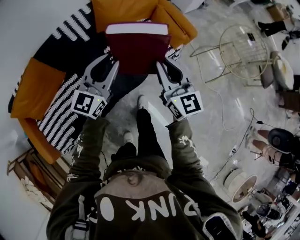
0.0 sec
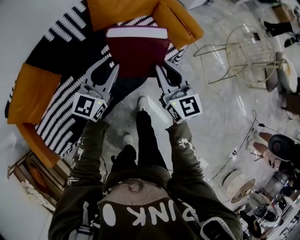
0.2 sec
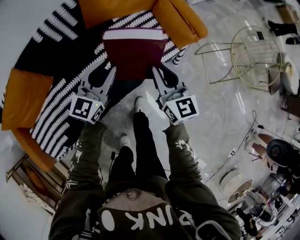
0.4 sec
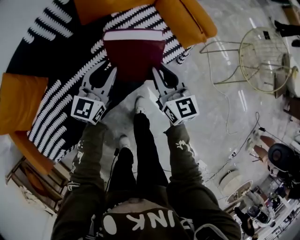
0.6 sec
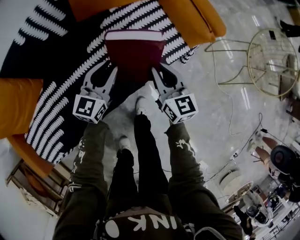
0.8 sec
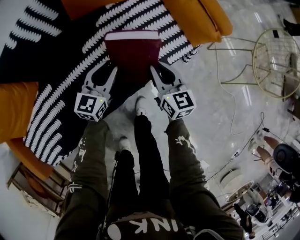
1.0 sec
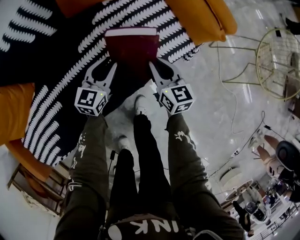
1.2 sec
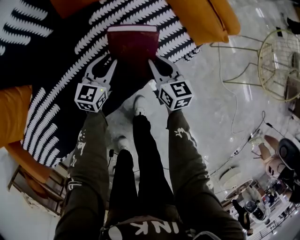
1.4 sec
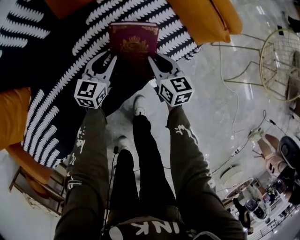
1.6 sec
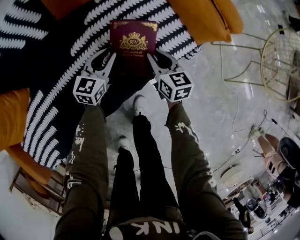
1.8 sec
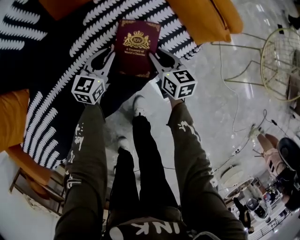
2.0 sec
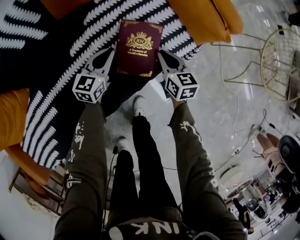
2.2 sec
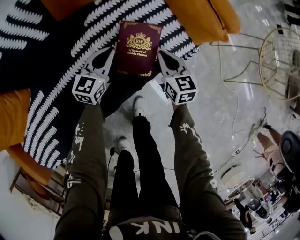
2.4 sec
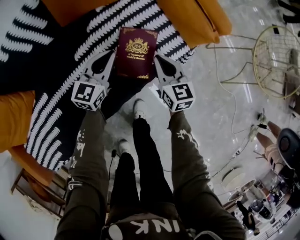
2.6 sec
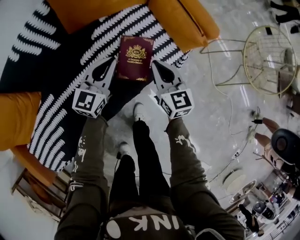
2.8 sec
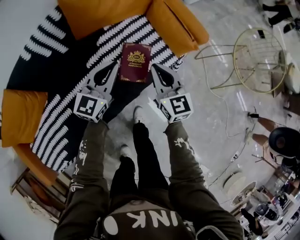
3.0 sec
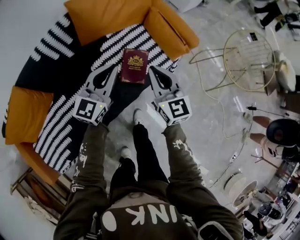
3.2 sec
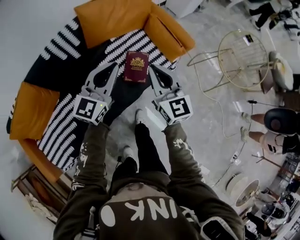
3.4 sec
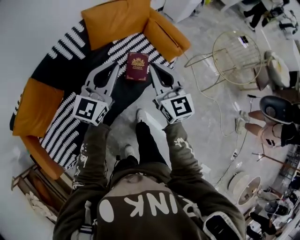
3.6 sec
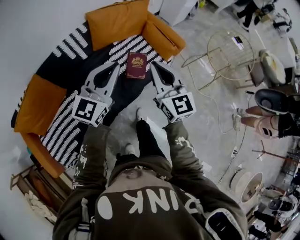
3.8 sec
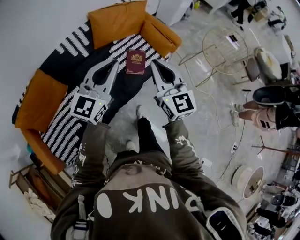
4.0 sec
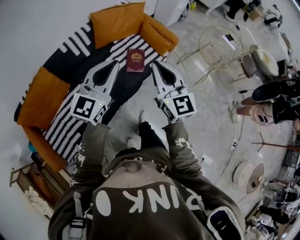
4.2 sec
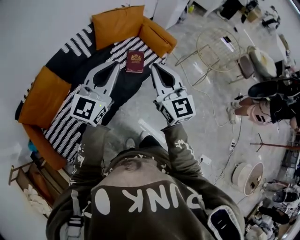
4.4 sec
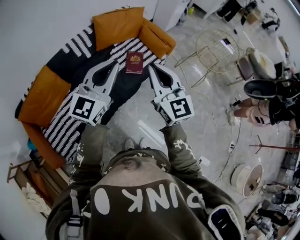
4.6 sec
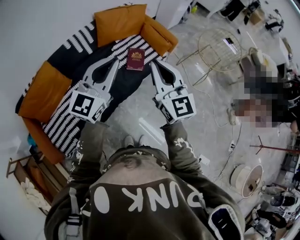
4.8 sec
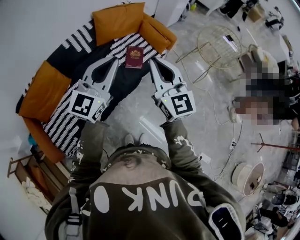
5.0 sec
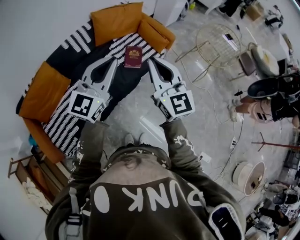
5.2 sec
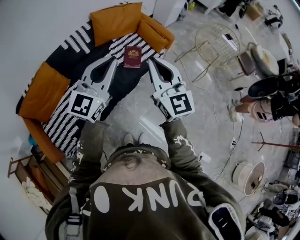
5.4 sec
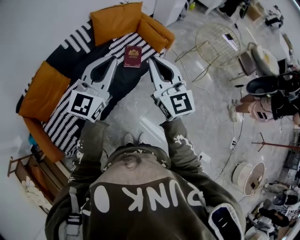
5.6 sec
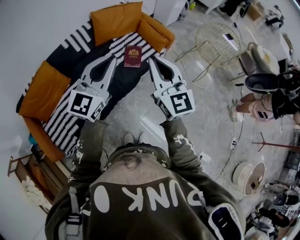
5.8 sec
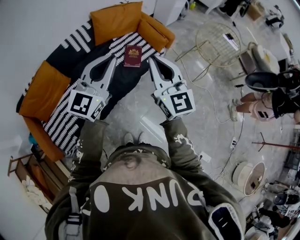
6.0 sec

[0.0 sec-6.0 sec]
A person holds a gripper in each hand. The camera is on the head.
0.0 sec to 1.6 sec: Both grippers move downward and forward, about 50 cm. The right gripper swivels roughly 30 degrees; the left gripper changes its angle by roughly 30 degrees.
1.6 sec to 3.0 sec: The grippers both shift upward by roughly 25 cm. The right gripper turns by roughly 20 degrees; the left gripper closes up.
3.0 sec to 4.4 sec: The two grippers go approximately 50 cm upward and backward. The right gripper swivels some 20 degrees.
4.4 sec to 6.0 sec: The left gripper changes place by approximately 5 cm; the right gripper changes place by approximately 5 cm.

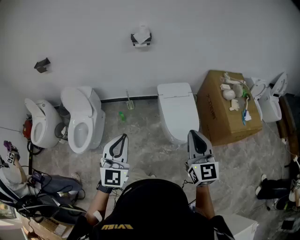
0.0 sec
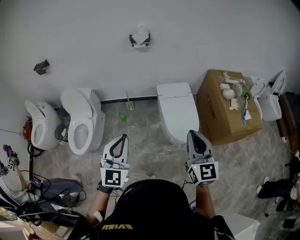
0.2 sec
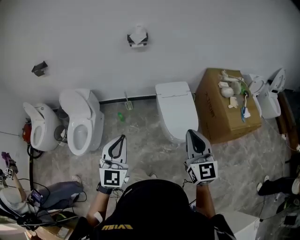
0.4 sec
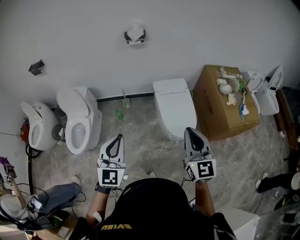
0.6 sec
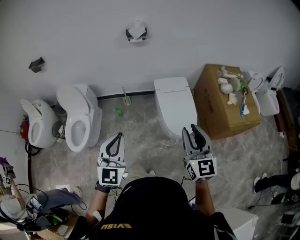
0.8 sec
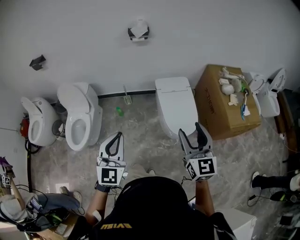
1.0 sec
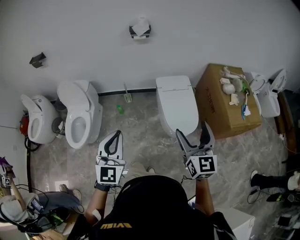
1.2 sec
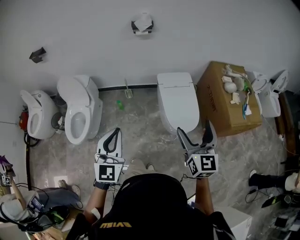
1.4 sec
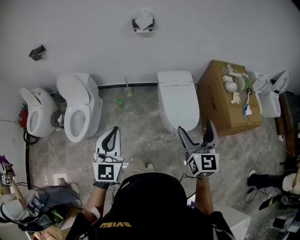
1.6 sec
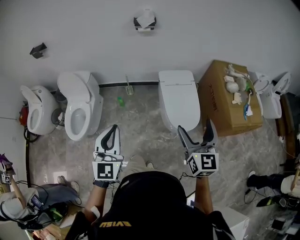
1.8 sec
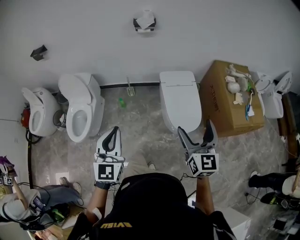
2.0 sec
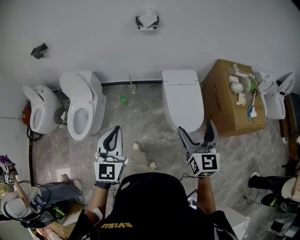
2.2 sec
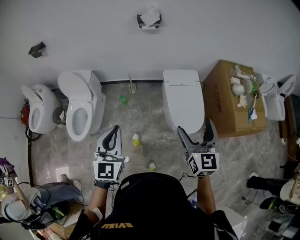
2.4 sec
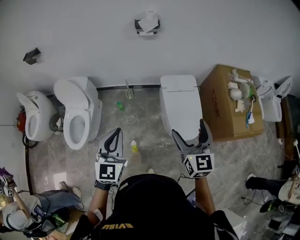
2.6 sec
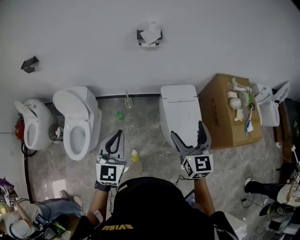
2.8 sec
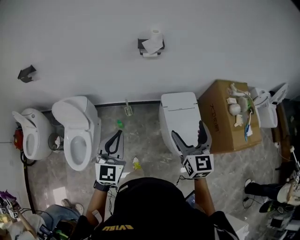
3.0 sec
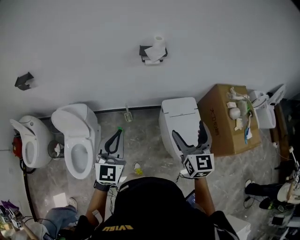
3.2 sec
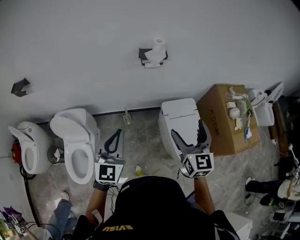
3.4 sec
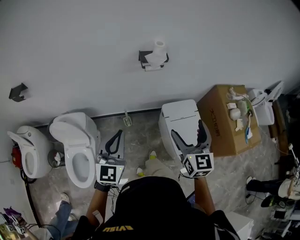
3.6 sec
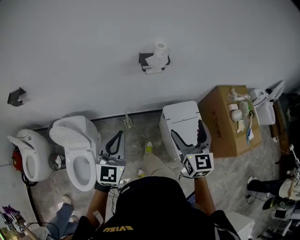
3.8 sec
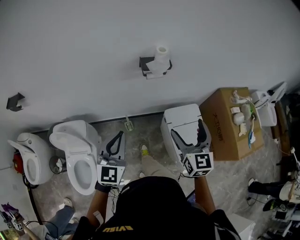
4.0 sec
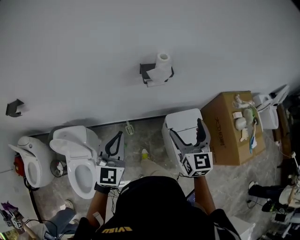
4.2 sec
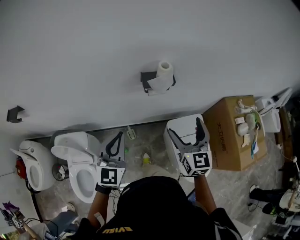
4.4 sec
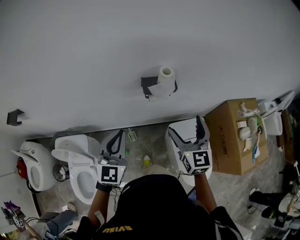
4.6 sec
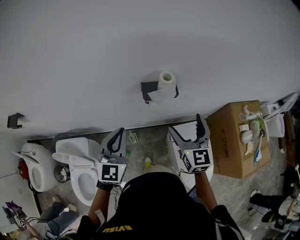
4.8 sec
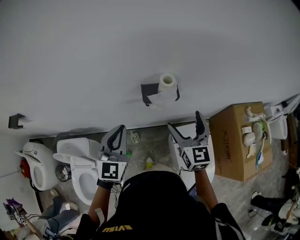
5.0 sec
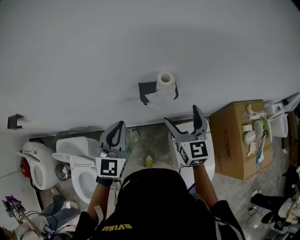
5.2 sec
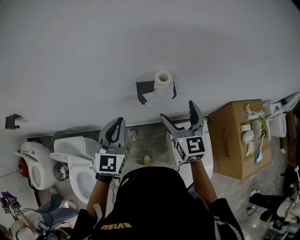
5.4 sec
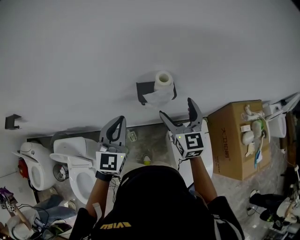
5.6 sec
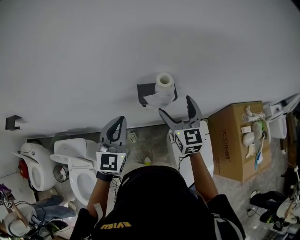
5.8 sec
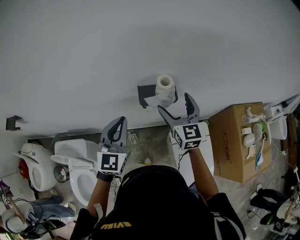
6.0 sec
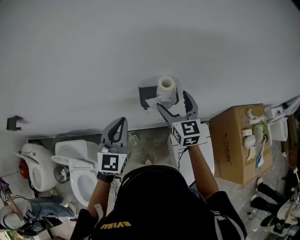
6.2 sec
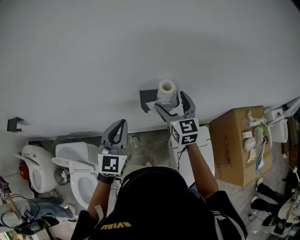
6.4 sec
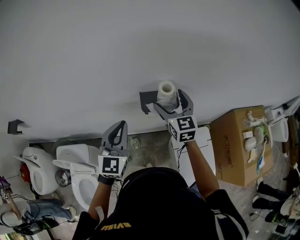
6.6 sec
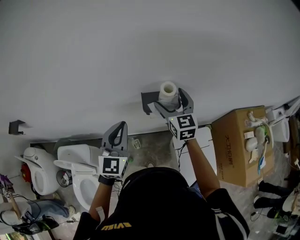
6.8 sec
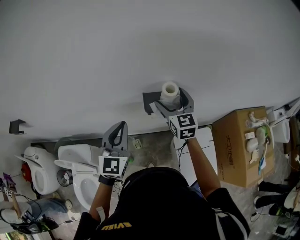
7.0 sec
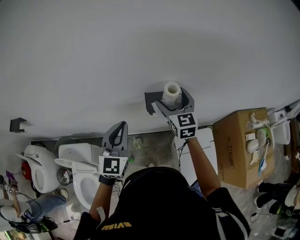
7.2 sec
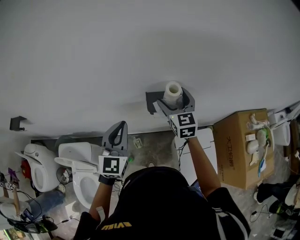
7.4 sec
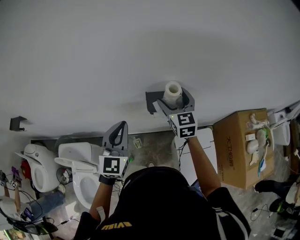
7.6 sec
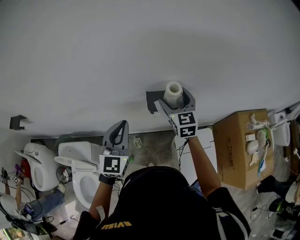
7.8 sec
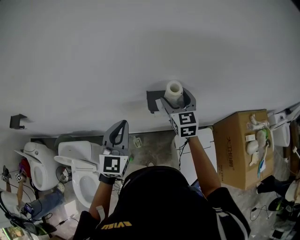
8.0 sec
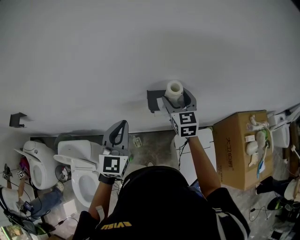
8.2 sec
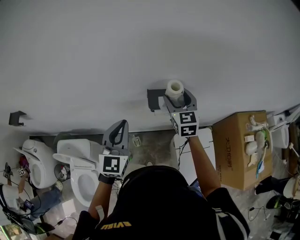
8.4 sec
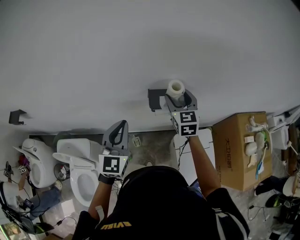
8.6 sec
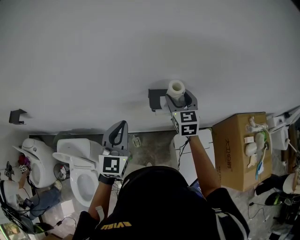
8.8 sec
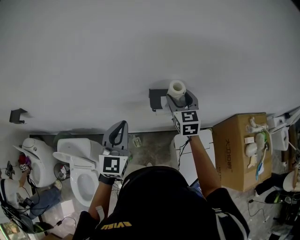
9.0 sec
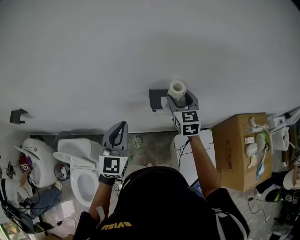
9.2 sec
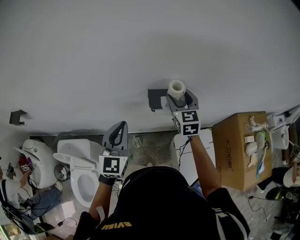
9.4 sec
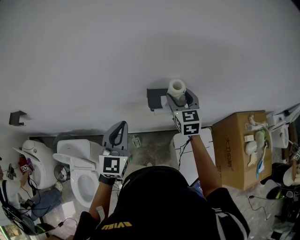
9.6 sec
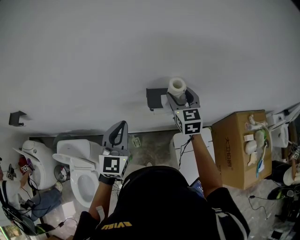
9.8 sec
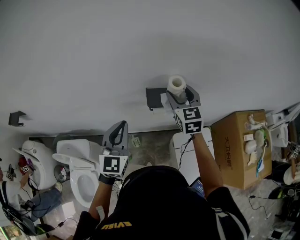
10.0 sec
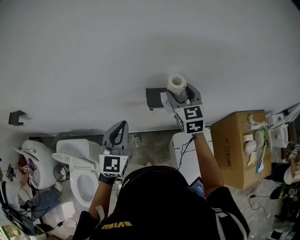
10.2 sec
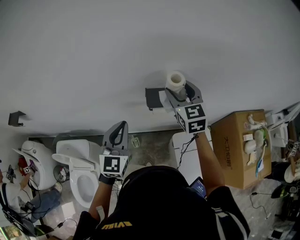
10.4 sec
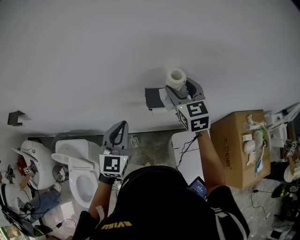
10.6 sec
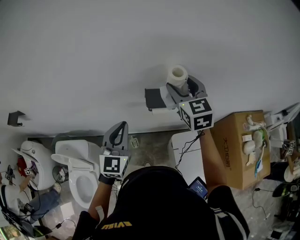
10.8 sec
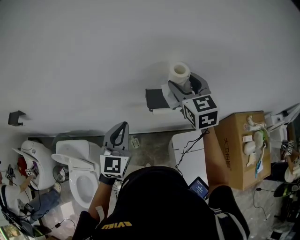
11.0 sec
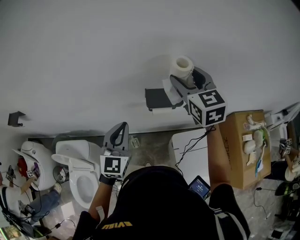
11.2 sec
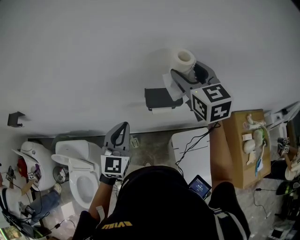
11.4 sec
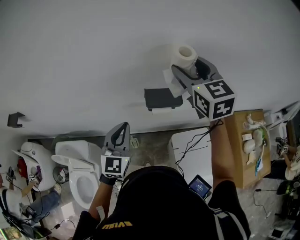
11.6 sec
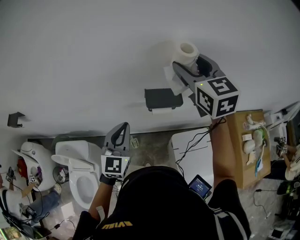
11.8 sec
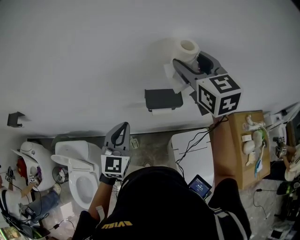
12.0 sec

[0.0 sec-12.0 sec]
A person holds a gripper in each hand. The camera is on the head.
0.0 sec to 1.6 sec: The left gripper moves to the left, approximately 5 cm, and rotates roughly 20 degrees. Meanwhile the right gripper opens.
1.6 sec to 3.0 sec: The left gripper is displaced forward by about 25 cm. The right gripper heads forward and to the left, covering some 25 cm.
3.0 sec to 4.4 sec: Both grippers move forward, roughly 30 cm.
4.4 sec to 6.0 sec: Both grippers move forward, roughly 20 cm.
6.0 sec to 7.6 sec: The right gripper is displaced forward by approximately 5 cm.
7.6 sec to 9.0 sec: The grippers move only a little.
9.0 sec to 10.4 sec: The right gripper is displaced upward by approximately 5 cm.
10.4 sec to 12.0 sec: The right gripper moves upward, about 15 cm.

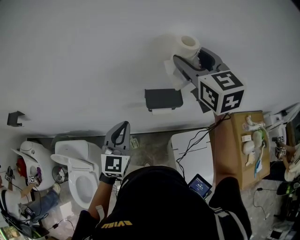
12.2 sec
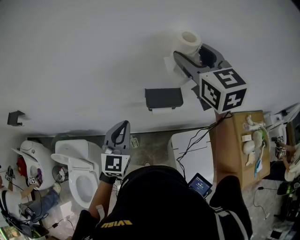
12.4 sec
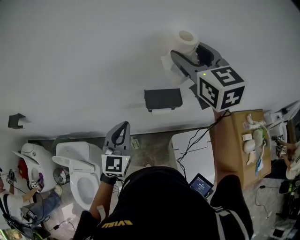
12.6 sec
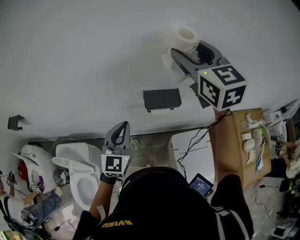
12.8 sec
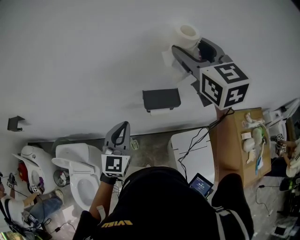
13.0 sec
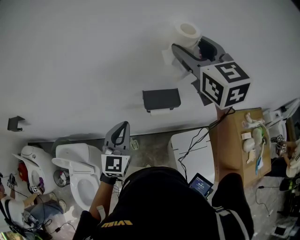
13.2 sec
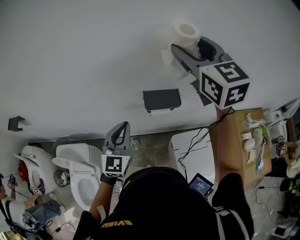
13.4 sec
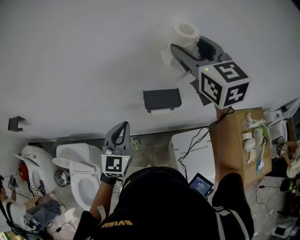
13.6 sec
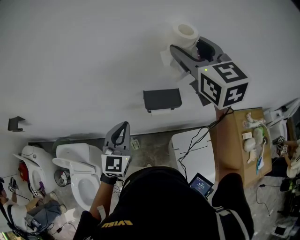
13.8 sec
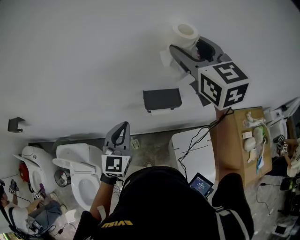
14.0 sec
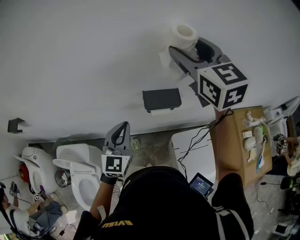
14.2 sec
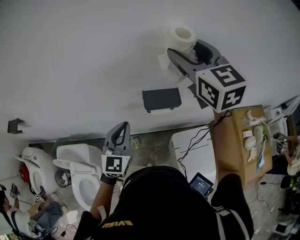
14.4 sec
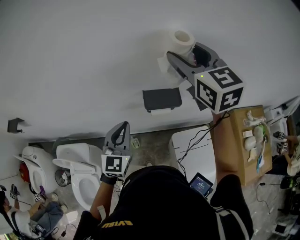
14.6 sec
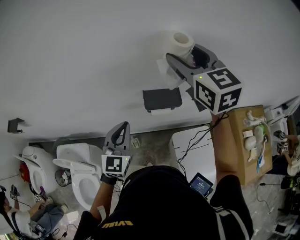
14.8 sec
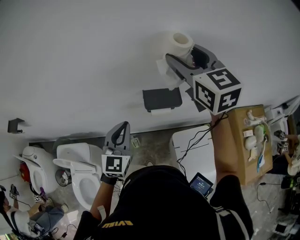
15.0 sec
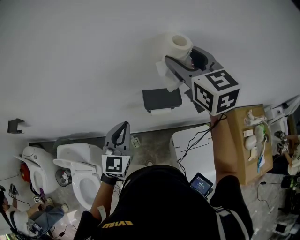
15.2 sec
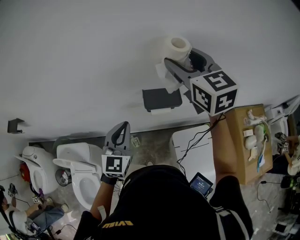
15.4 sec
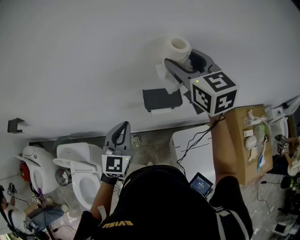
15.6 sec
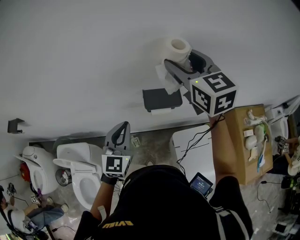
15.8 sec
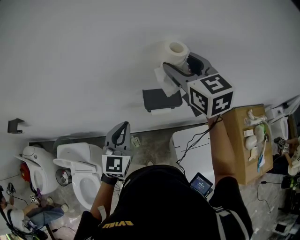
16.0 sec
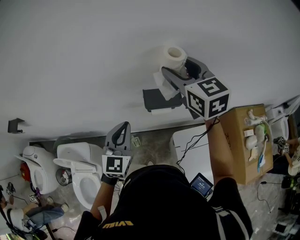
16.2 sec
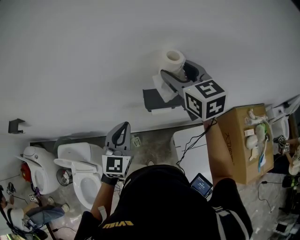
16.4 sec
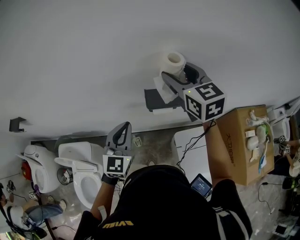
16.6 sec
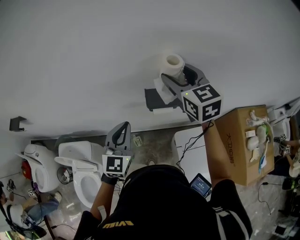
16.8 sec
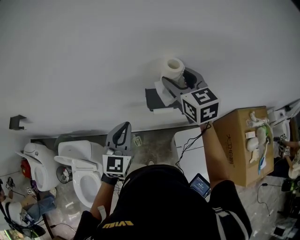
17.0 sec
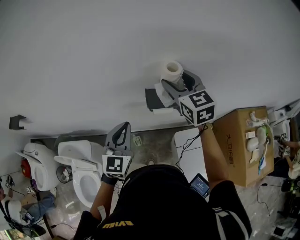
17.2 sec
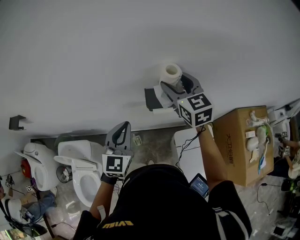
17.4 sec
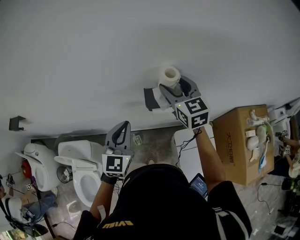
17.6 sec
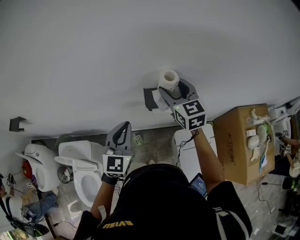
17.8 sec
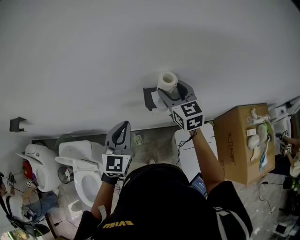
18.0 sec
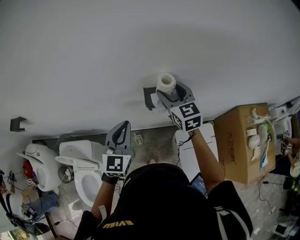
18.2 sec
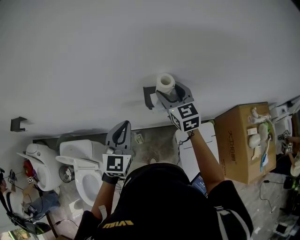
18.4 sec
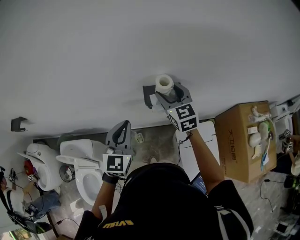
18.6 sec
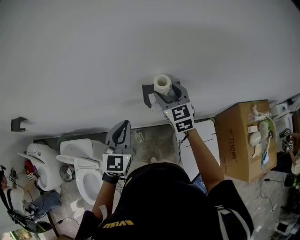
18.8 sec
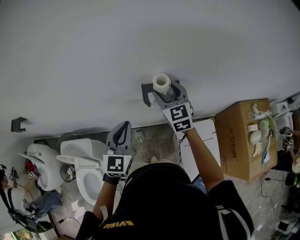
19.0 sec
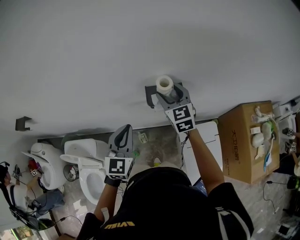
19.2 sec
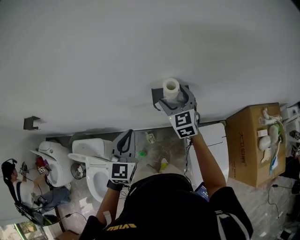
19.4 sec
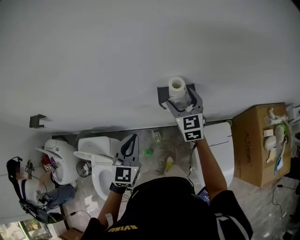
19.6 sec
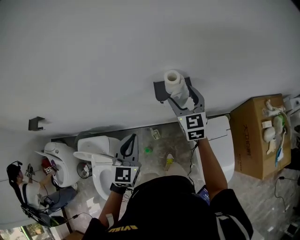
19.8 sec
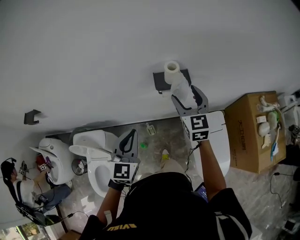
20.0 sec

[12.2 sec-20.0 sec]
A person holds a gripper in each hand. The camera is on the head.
12.2 sec to 13.8 sec: There are only small adjustments of the grippers.
13.8 sec to 15.4 sec: The right gripper goes some 5 cm downward.
15.4 sec to 16.8 sec: The right gripper shifts roughly 5 cm downward.
16.8 sec to 18.4 sec: The right gripper travels downward by approximately 10 cm.
18.4 sec to 20.0 sec: The two grippers go roughly 10 cm backward.
